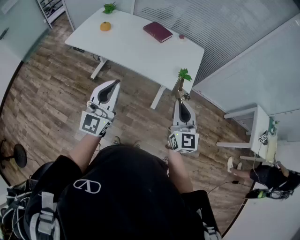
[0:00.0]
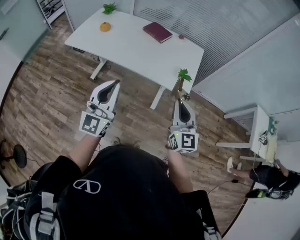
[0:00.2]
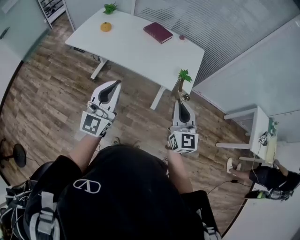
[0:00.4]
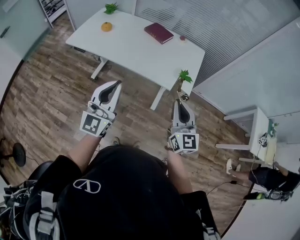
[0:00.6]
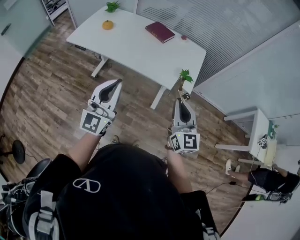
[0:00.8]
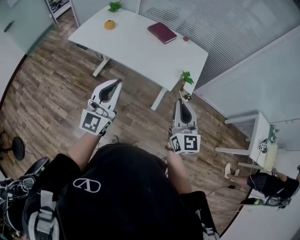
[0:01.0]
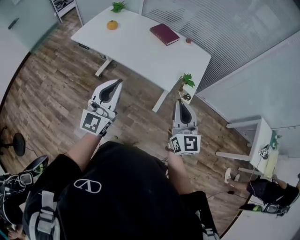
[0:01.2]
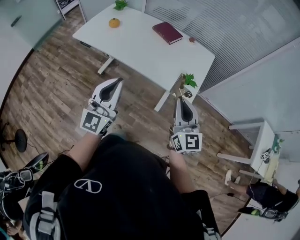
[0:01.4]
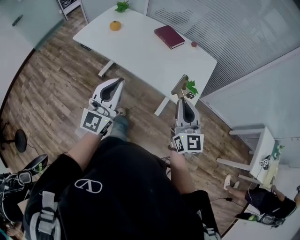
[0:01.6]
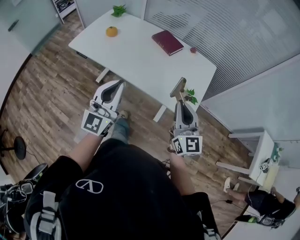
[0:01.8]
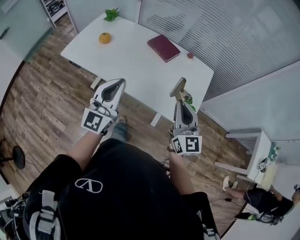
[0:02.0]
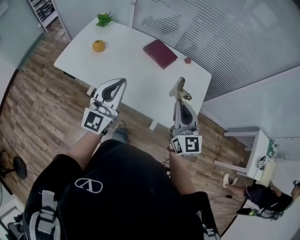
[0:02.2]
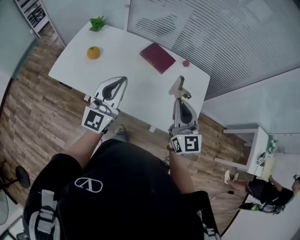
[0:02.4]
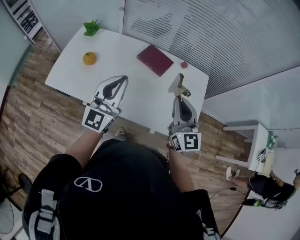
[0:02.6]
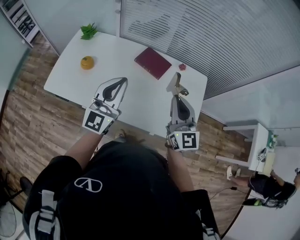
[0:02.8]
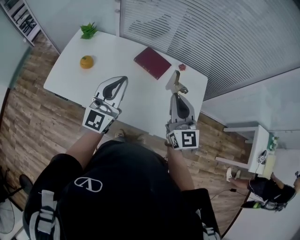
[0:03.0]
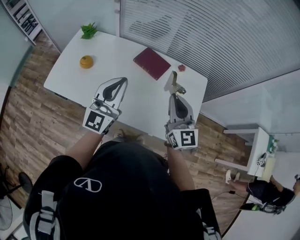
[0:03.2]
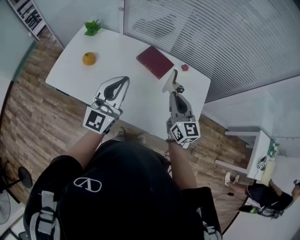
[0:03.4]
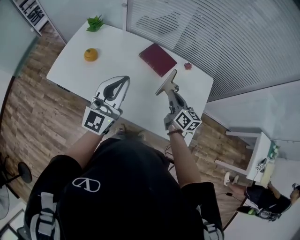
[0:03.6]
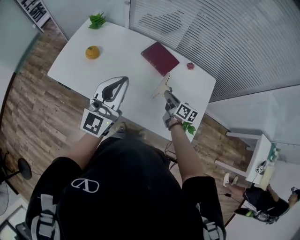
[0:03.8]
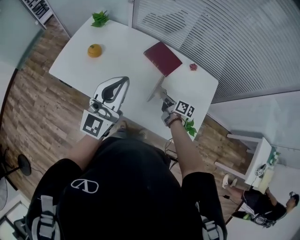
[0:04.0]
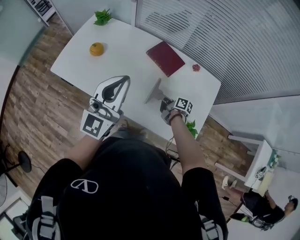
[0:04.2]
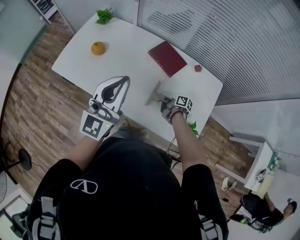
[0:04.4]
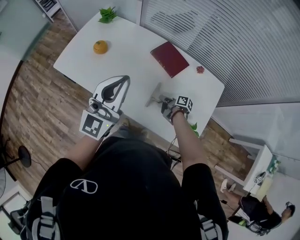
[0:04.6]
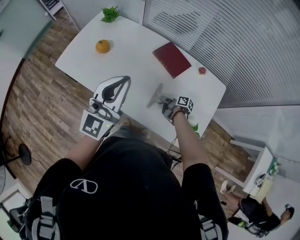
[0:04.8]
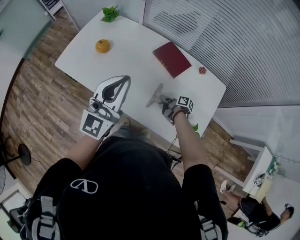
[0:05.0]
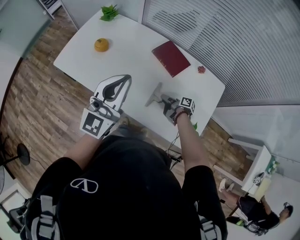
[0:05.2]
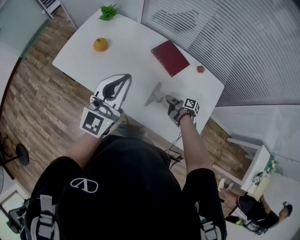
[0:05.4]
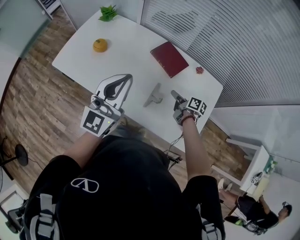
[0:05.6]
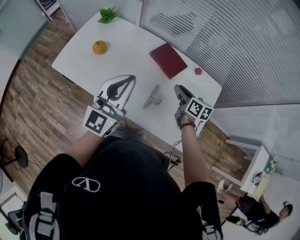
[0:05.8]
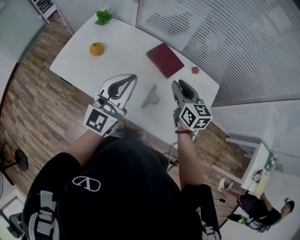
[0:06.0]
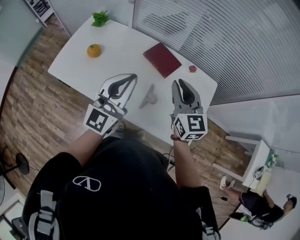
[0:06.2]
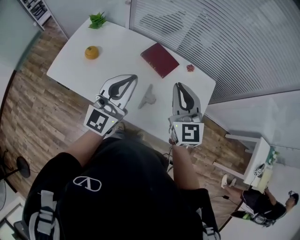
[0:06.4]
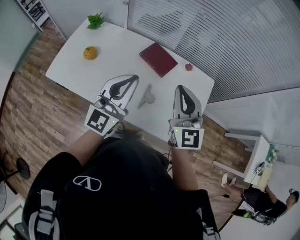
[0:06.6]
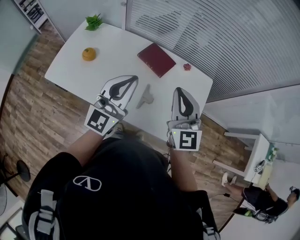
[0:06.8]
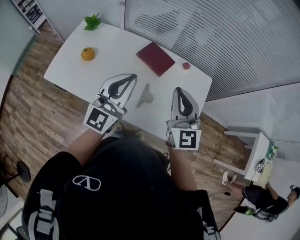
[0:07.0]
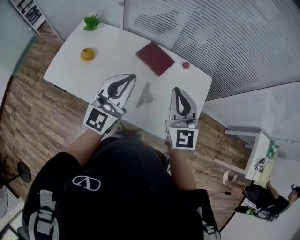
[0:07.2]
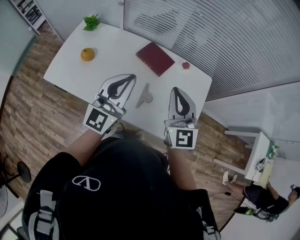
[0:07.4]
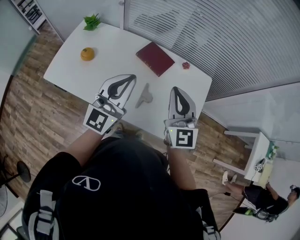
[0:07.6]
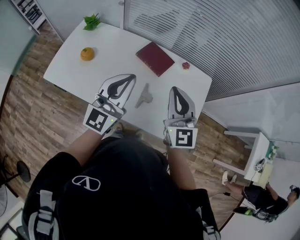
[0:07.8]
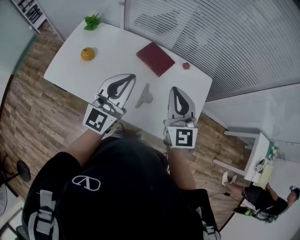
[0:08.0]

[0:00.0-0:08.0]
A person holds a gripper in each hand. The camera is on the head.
0.0 to 1.6 s: Both grippers travel together forward, approximately 10 cm.
1.6 to 3.2 s: The grippers both shift forward by approximately 35 cm.
3.2 to 4.8 s: The right gripper is displaced downward by roughly 40 cm, and rotates around the line of its fingers by about 80 degrees, clockwise from behind.
4.8 to 6.4 s: The left gripper shifts by roughly 5 cm. The right gripper shifts about 40 cm upward, twists some 90 degrees counterclockwise, seen from behind, and opens, then closes again.
6.4 to 8.0 s: The grippers make only small movements.

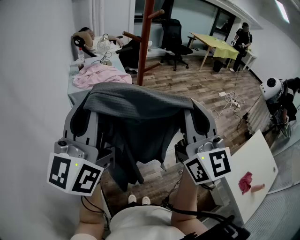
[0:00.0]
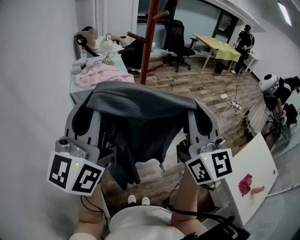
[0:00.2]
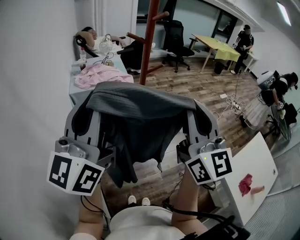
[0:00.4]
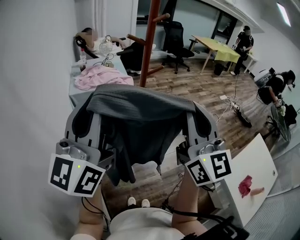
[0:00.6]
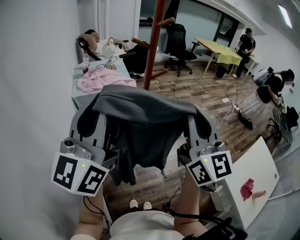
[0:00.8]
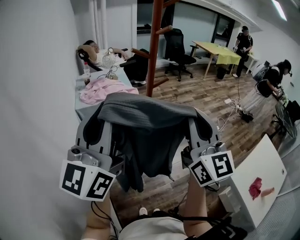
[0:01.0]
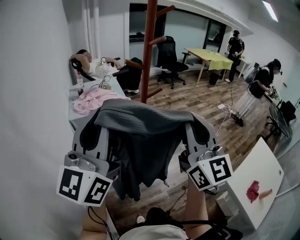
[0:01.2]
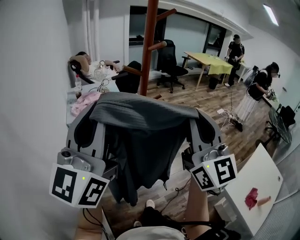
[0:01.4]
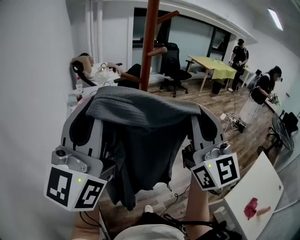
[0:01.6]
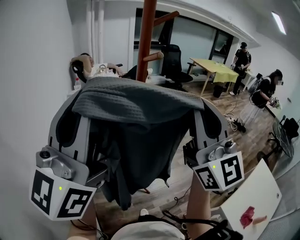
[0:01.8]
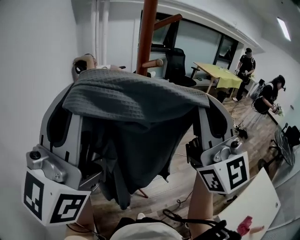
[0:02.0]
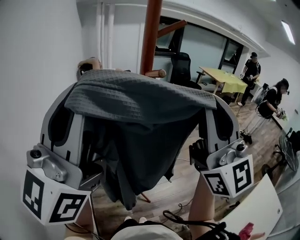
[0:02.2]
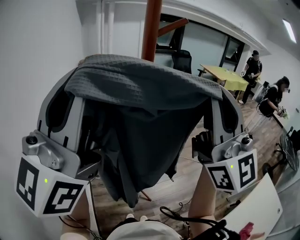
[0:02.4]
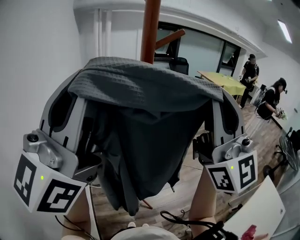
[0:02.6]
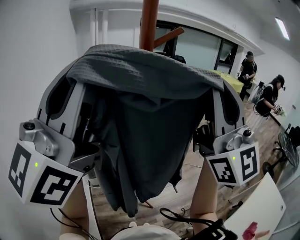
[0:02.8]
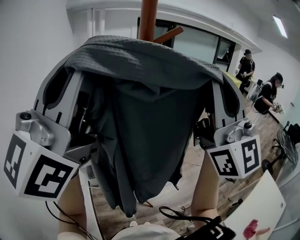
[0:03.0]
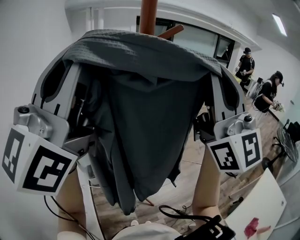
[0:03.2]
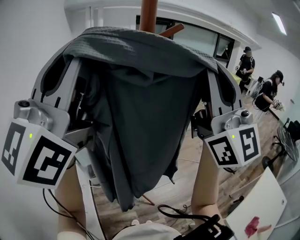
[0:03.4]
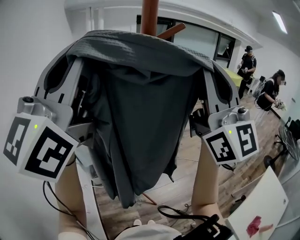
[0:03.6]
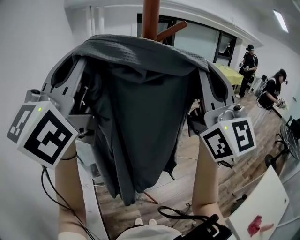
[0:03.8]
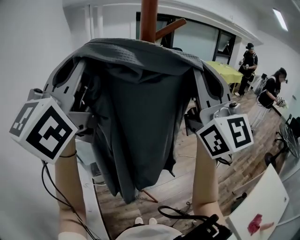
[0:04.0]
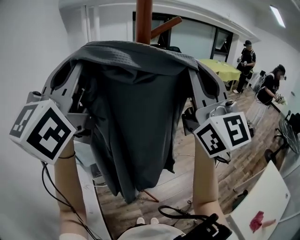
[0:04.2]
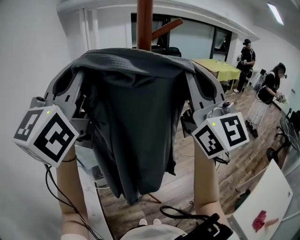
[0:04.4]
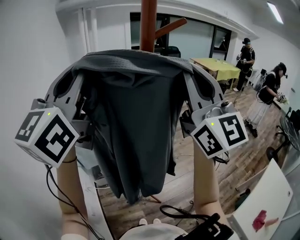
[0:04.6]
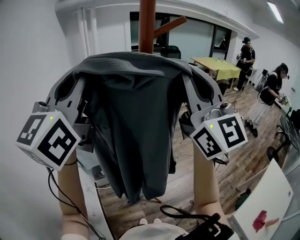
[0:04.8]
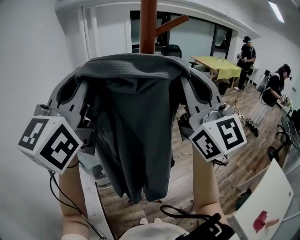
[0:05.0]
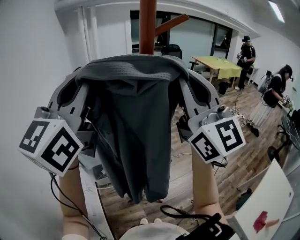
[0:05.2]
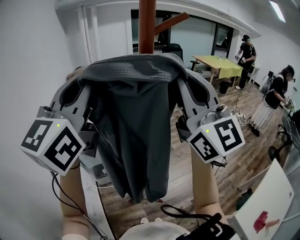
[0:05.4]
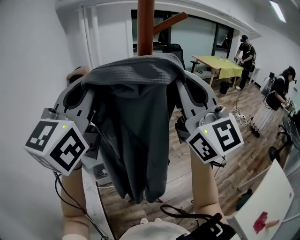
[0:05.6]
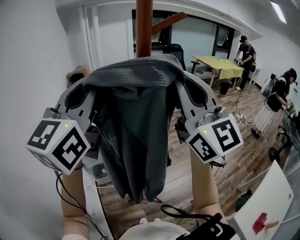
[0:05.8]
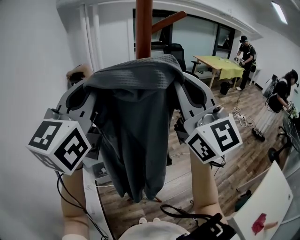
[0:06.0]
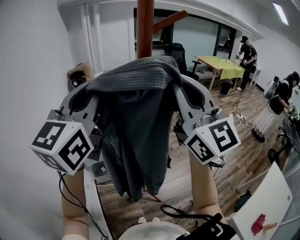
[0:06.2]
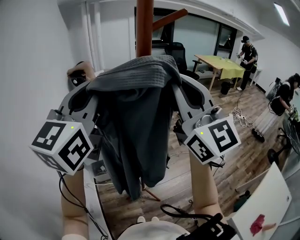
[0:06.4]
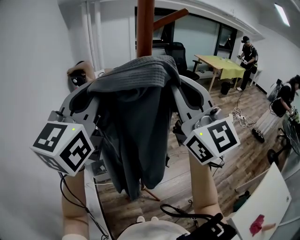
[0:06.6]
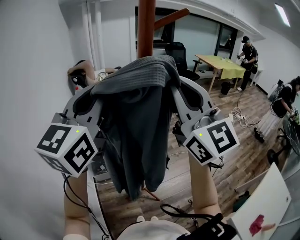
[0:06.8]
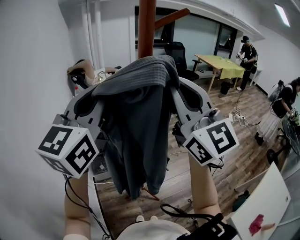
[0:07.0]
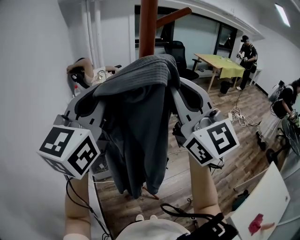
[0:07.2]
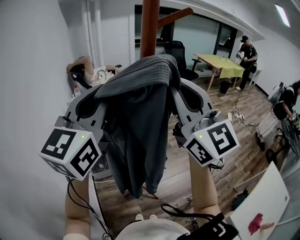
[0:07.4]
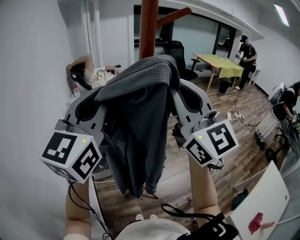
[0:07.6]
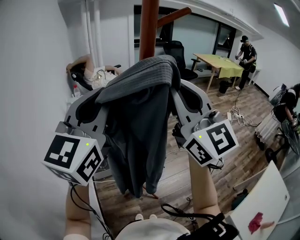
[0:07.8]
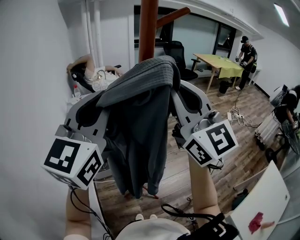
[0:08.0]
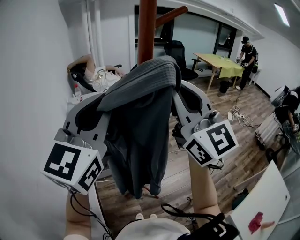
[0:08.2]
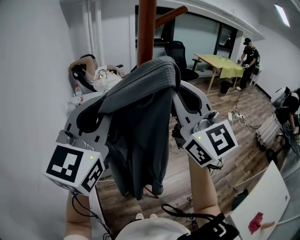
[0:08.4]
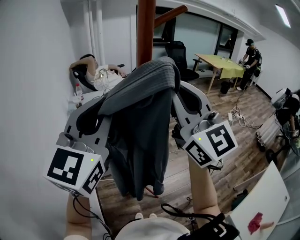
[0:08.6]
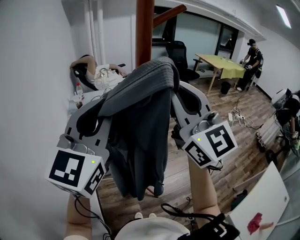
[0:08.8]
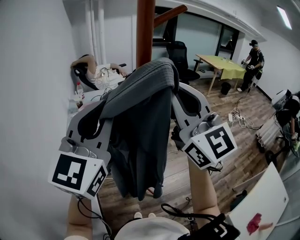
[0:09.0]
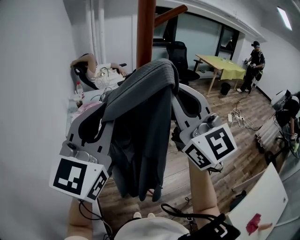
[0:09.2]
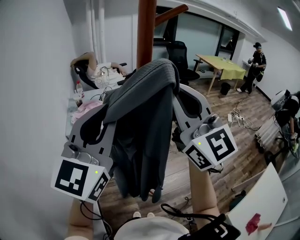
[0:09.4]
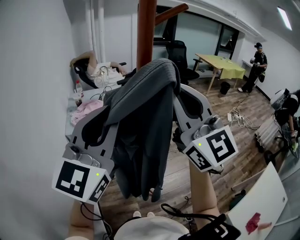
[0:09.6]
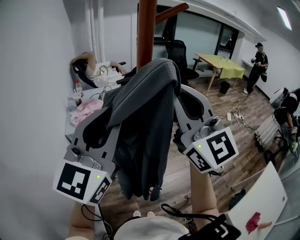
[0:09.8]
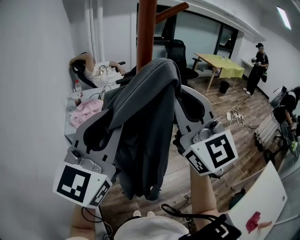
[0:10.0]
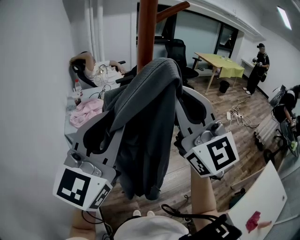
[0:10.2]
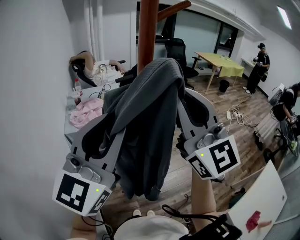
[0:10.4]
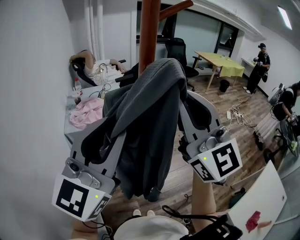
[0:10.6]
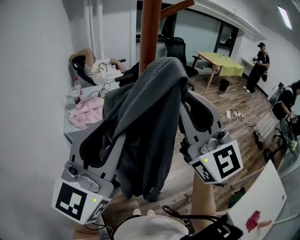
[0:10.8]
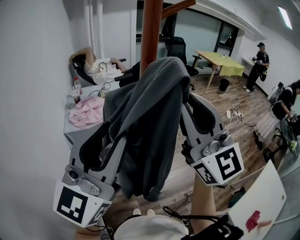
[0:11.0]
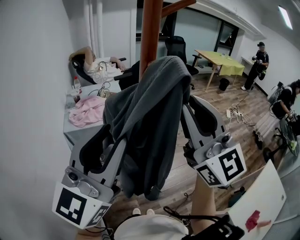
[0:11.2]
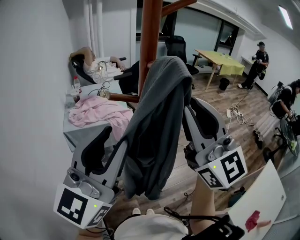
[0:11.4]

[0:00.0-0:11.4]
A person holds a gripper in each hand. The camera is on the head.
0.0 to 1.4 s: The left gripper travels upward and forward by approximately 10 cm. The right gripper goes approximately 10 cm forward and upward.
1.4 to 2.8 s: Both grippers move upward and forward, some 15 cm. The right gripper turns by some 20 degrees.
2.8 to 4.2 s: Both grippers move forward, approximately 10 cm.
4.2 to 5.6 s: The left gripper moves downward, about 5 cm.
5.6 to 7.2 s: The grippers move only a little.
7.2 to 8.6 s: There are only small adjustments of the grippers.
8.6 to 10.0 s: There are only small adjustments of the grippers.
10.0 to 11.4 s: The grippers make only small movements.

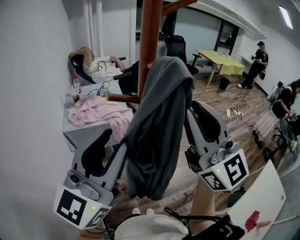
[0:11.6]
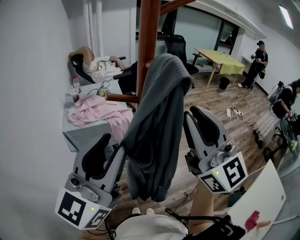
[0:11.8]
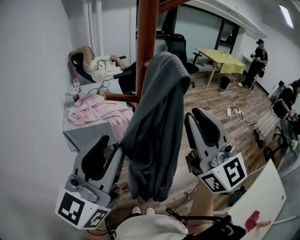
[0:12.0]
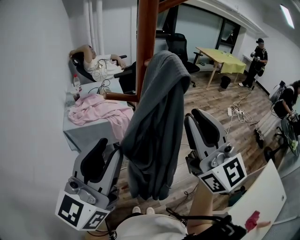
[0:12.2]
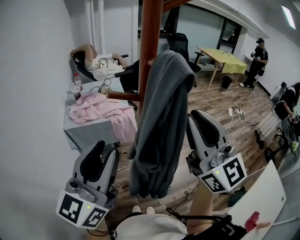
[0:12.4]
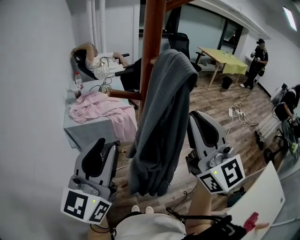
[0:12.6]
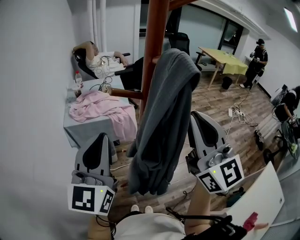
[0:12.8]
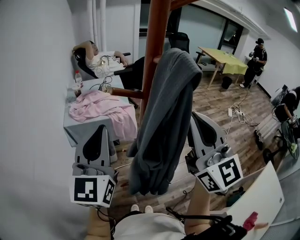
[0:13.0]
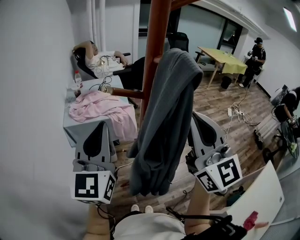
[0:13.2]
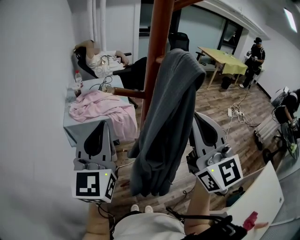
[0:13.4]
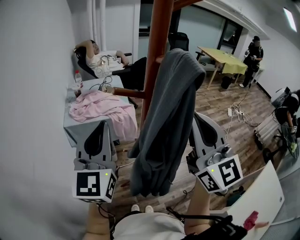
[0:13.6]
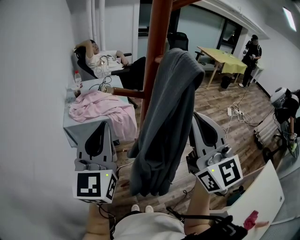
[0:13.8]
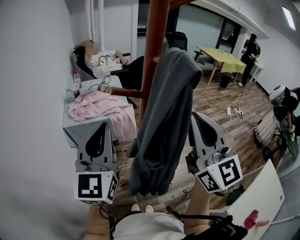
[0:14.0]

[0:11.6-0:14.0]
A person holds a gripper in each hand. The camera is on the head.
11.6 to 12.8 s: The left gripper is displaced downward and to the left by about 10 cm, turns by some 20 degrees, and closes its fingers.
12.8 to 14.0 s: The grippers make only small movements.

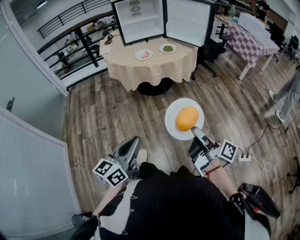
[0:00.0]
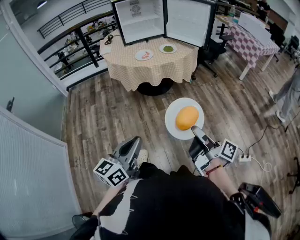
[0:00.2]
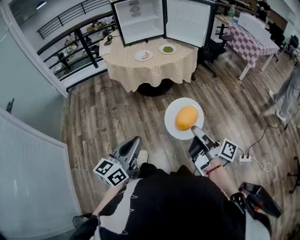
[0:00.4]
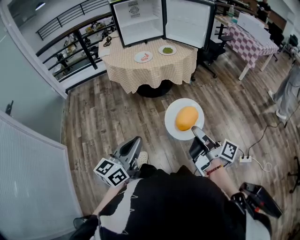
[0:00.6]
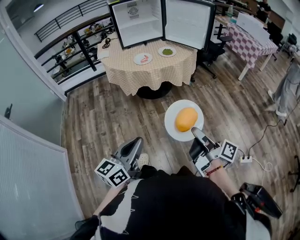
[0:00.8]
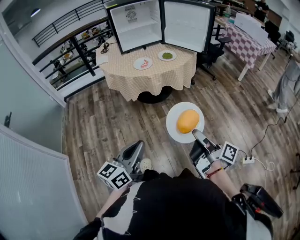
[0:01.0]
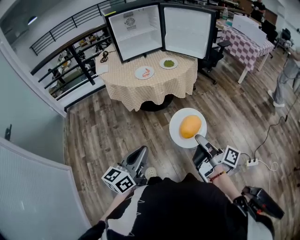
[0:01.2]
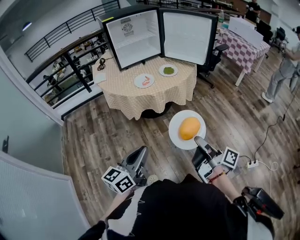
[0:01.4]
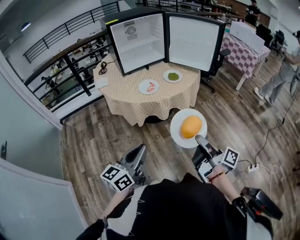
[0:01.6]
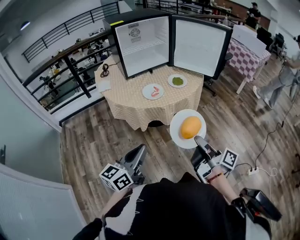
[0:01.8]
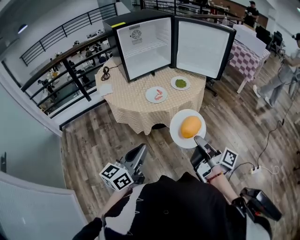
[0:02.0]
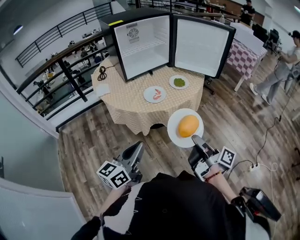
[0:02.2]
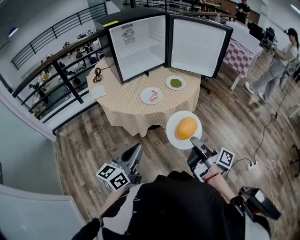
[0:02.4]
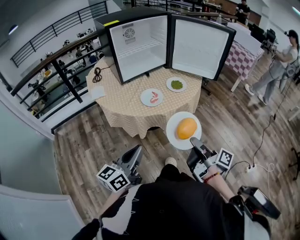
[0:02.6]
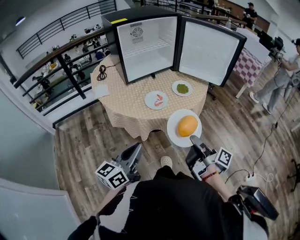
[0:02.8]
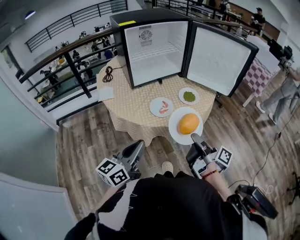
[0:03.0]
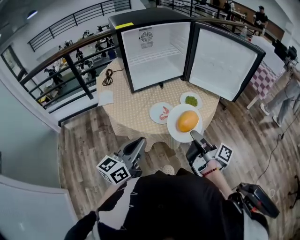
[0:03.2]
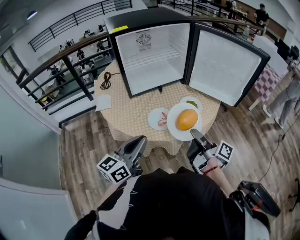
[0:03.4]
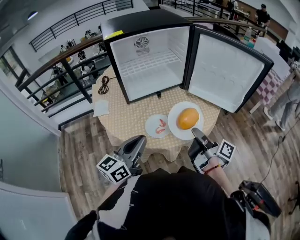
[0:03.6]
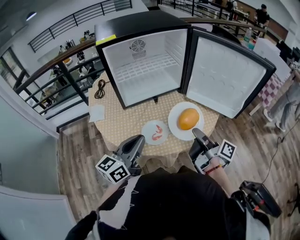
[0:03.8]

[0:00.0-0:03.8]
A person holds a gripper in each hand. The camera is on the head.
0.0 to 1.2 s: Both grippers travel together forward, approximately 10 cm.
1.2 to 2.6 s: The grippers both shift forward and to the left by approximately 25 cm.
2.6 to 3.8 s: Both grippers move forward, about 30 cm.
